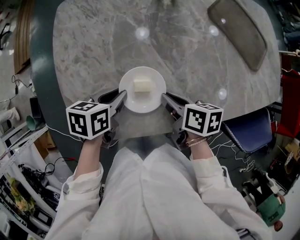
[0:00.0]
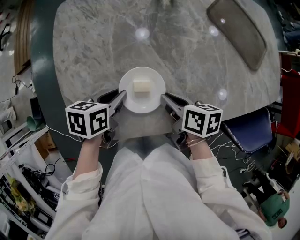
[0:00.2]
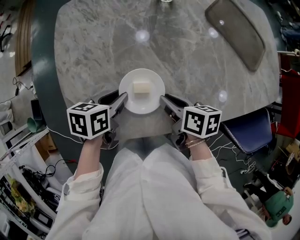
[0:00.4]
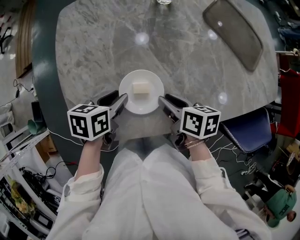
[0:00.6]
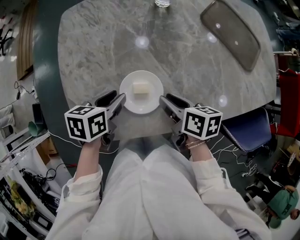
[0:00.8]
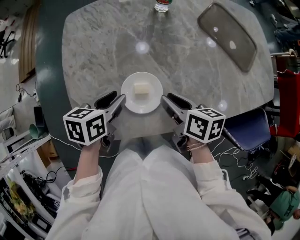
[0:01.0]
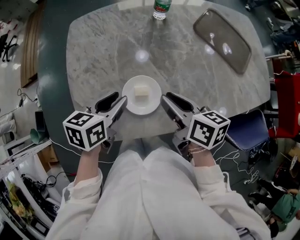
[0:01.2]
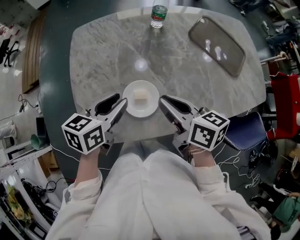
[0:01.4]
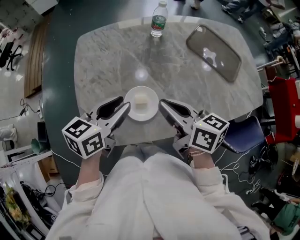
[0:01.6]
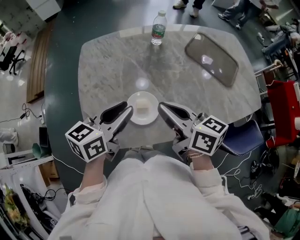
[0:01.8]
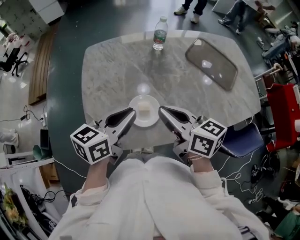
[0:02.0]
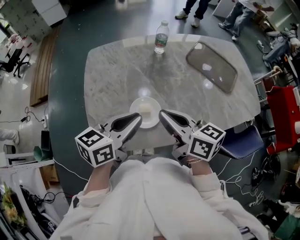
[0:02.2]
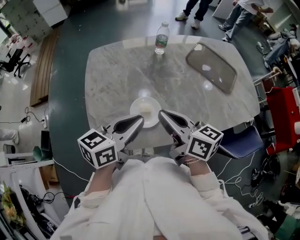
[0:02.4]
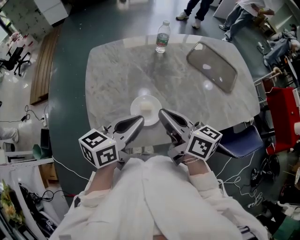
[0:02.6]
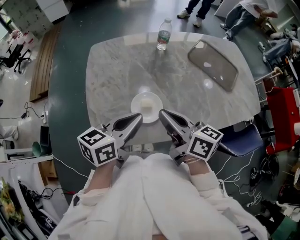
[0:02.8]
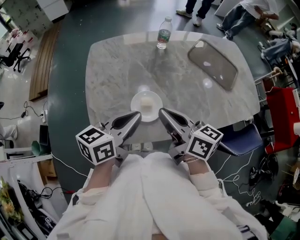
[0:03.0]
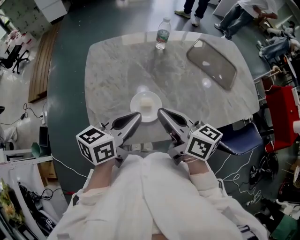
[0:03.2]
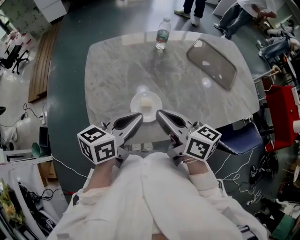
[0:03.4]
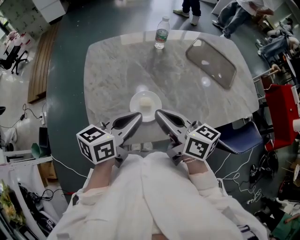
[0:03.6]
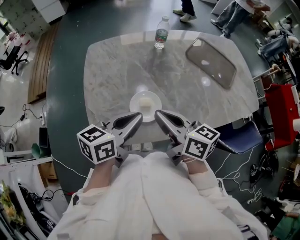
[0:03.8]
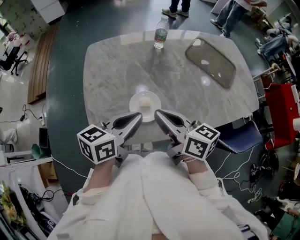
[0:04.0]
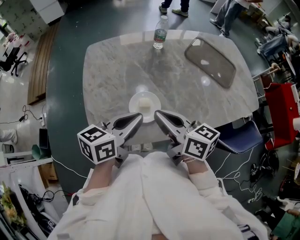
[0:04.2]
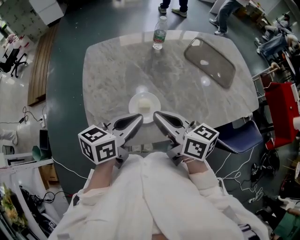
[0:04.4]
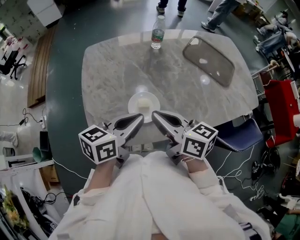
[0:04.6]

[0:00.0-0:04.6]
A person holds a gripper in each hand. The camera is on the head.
0:00.0 to 0:01.6: The grippers both shift upward by roughly 20 cm. The left gripper turns by approximately 30 degrees. Meanwhile the right gripper rotates roughly 30 degrees.
0:01.6 to 0:03.0: The left gripper shifts some 5 cm backward, and closes. Meanwhile the right gripper ends up some 5 cm from where it was.
0:03.0 to 0:04.6: The grippers make only small movements.

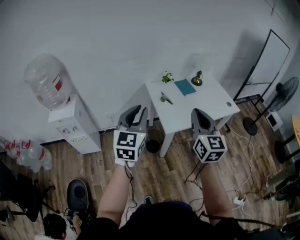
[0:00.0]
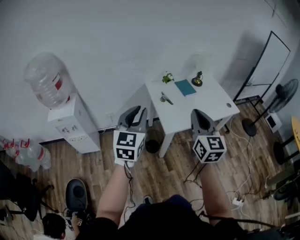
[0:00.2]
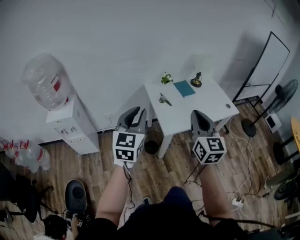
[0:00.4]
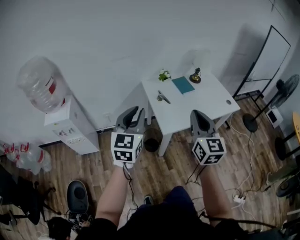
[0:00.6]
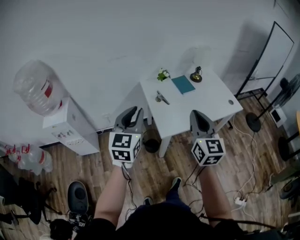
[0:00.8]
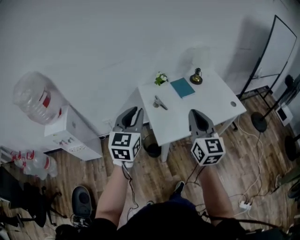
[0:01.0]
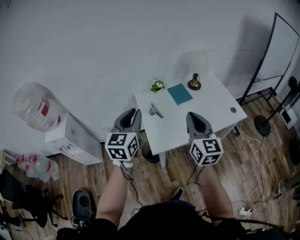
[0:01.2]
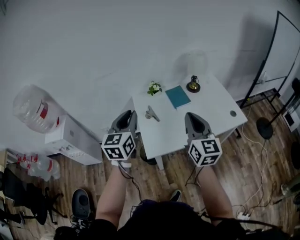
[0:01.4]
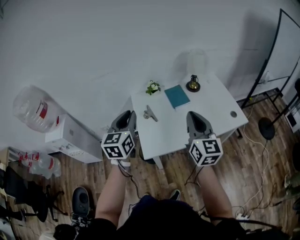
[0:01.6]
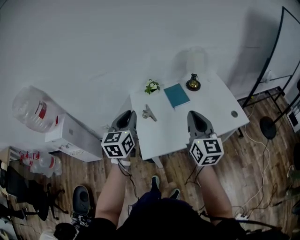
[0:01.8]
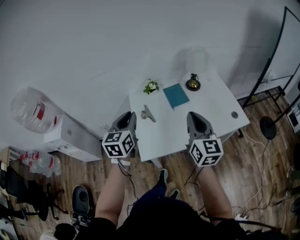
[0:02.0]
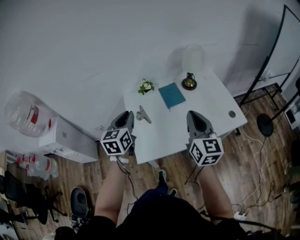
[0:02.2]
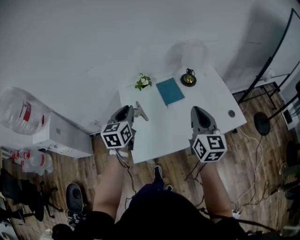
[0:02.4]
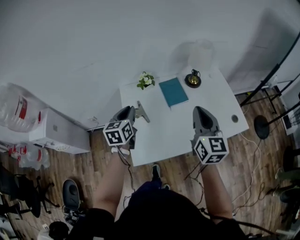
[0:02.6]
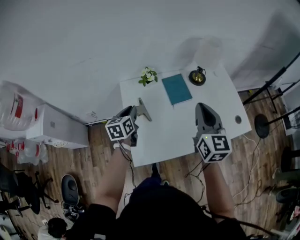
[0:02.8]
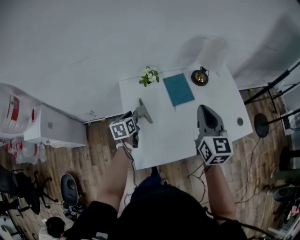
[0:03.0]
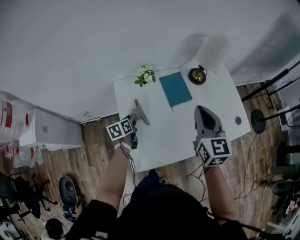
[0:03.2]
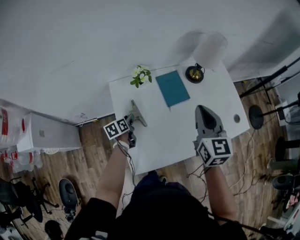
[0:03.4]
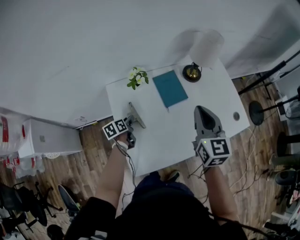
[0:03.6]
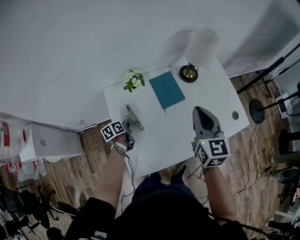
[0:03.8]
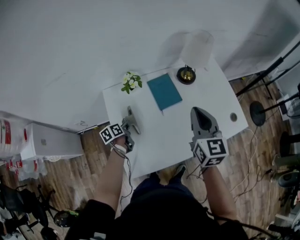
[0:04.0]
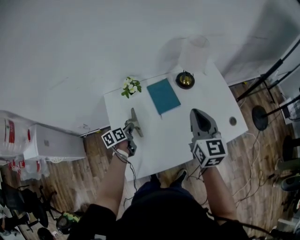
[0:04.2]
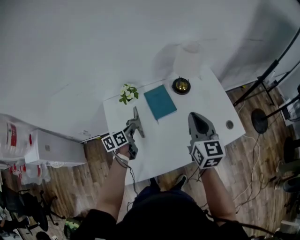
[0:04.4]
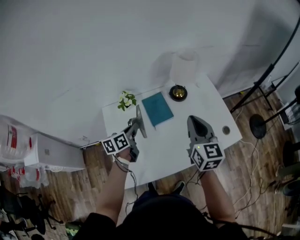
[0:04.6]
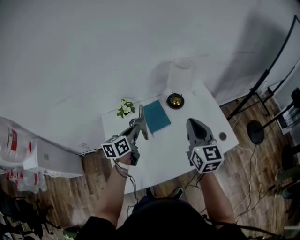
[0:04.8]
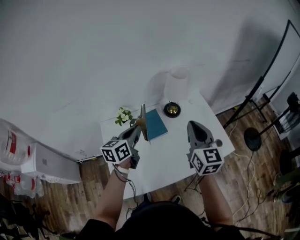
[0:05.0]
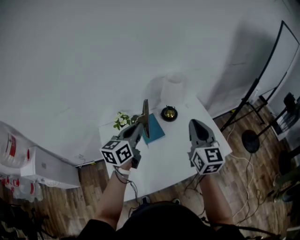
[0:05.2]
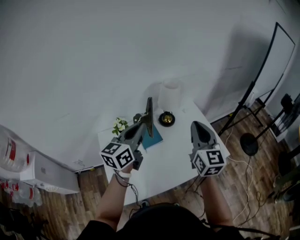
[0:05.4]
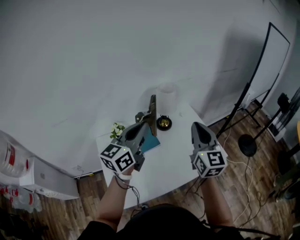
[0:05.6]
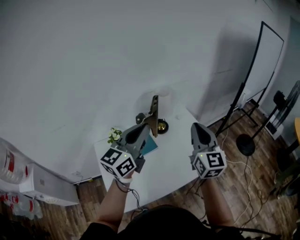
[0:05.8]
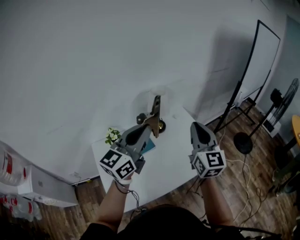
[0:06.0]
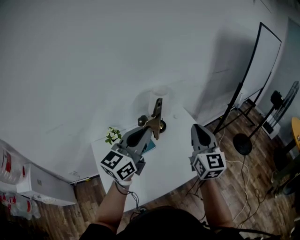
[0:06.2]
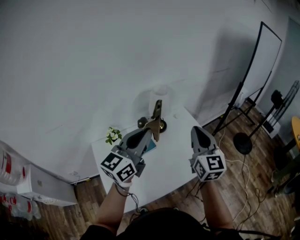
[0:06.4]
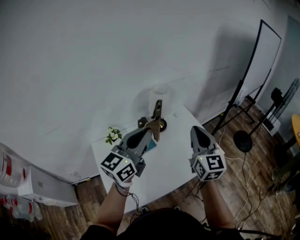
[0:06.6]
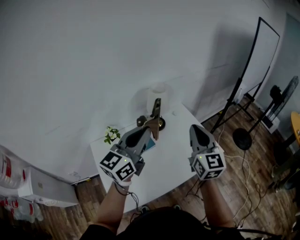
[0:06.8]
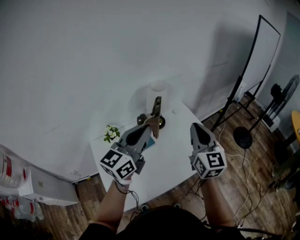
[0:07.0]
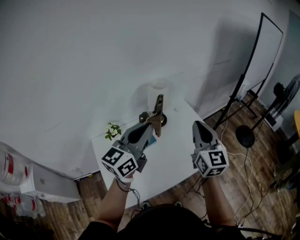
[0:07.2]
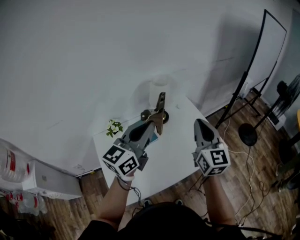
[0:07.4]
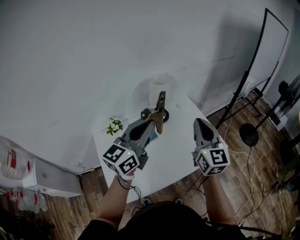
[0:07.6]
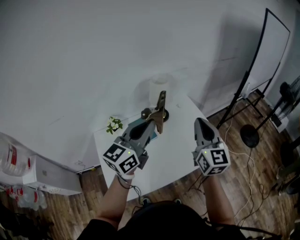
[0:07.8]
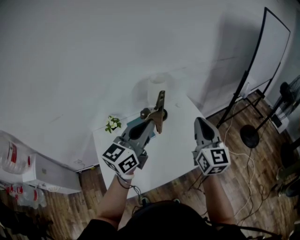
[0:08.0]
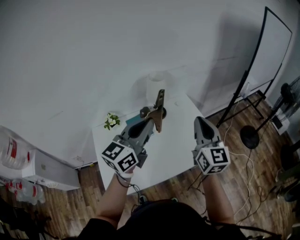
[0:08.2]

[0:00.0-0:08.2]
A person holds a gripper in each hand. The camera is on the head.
0:00.0 to 0:01.6: The grippers both shift forward and to the right by about 35 cm.
0:01.6 to 0:03.2: The left gripper moves downward and forward, about 50 cm, and angles its fingers downward, by about 30 degrees; the right gripper is displaced forward by approximately 25 cm.
0:03.2 to 0:05.0: The right gripper moves to the right and upward, approximately 15 cm. Meanwhile the left gripper travels upward and to the right by some 35 cm, turns by some 40 degrees, and closes up.
0:05.0 to 0:06.6: The right gripper shifts roughly 10 cm to the right and upward. The left gripper shifts about 20 cm upward and to the right, and changes its angle by approximately 30 degrees.
0:06.6 to 0:08.2: Both grippers travel together to the right, approximately 5 cm.

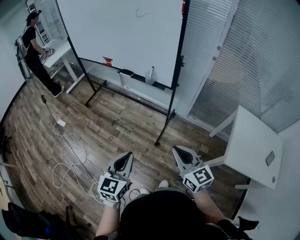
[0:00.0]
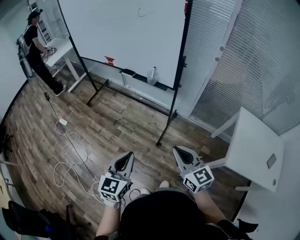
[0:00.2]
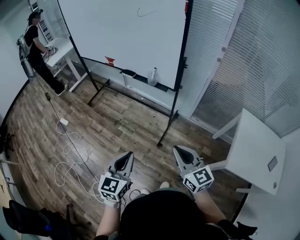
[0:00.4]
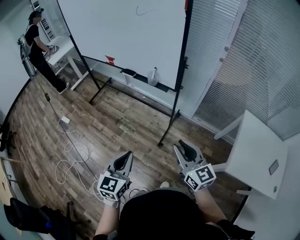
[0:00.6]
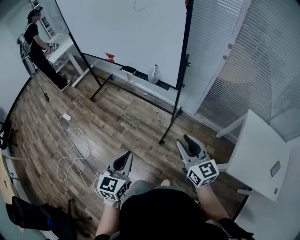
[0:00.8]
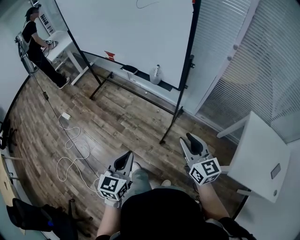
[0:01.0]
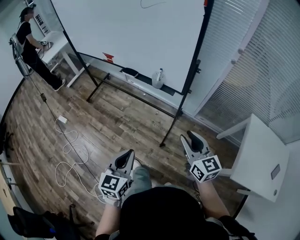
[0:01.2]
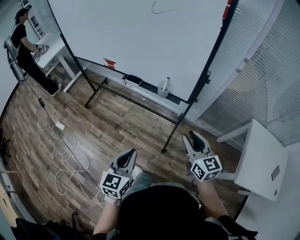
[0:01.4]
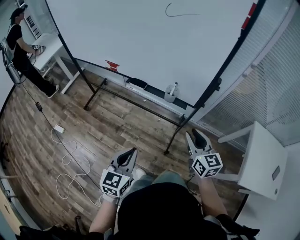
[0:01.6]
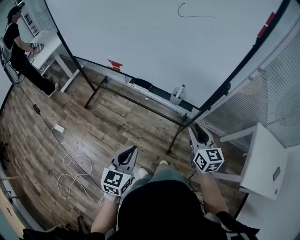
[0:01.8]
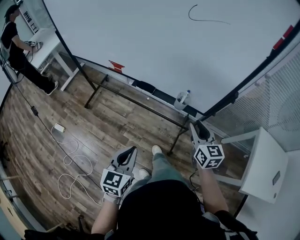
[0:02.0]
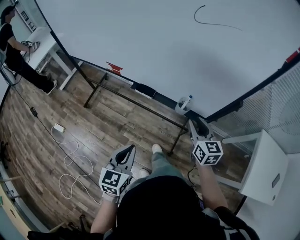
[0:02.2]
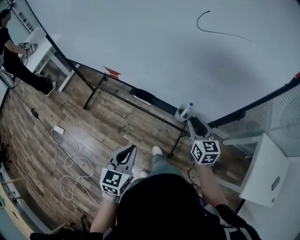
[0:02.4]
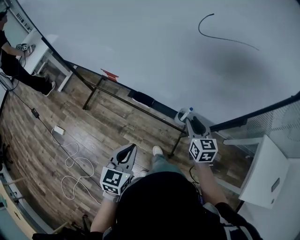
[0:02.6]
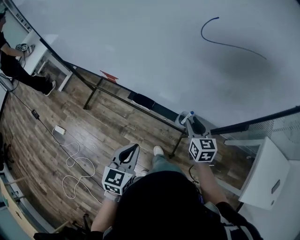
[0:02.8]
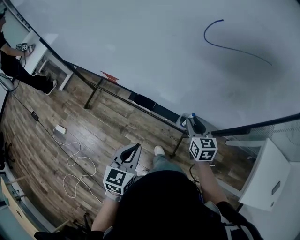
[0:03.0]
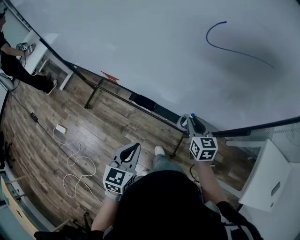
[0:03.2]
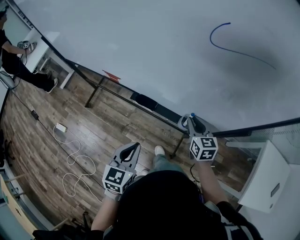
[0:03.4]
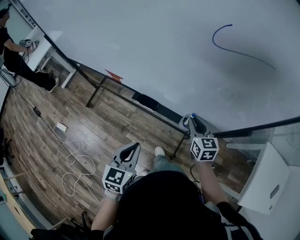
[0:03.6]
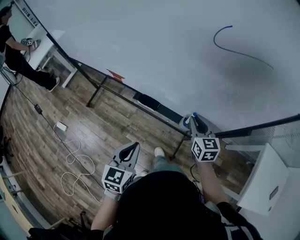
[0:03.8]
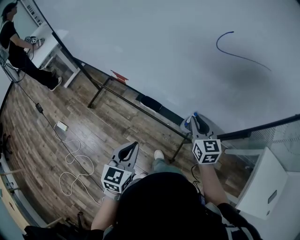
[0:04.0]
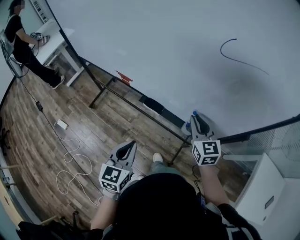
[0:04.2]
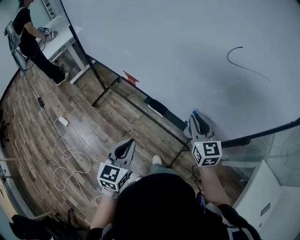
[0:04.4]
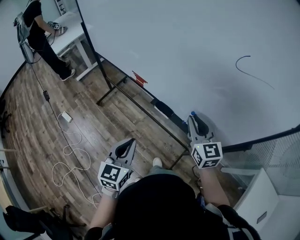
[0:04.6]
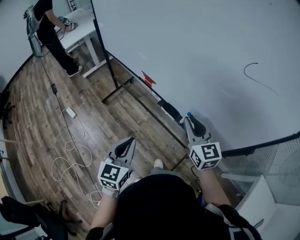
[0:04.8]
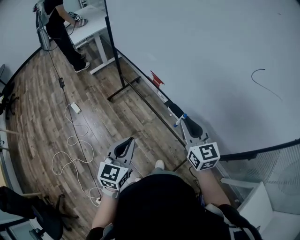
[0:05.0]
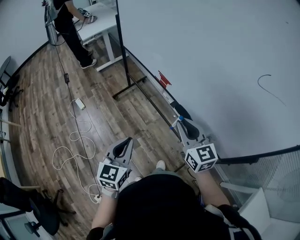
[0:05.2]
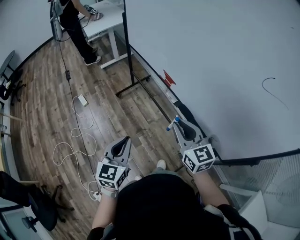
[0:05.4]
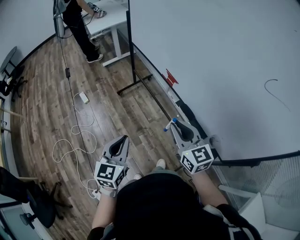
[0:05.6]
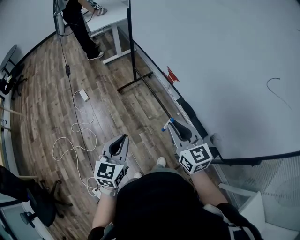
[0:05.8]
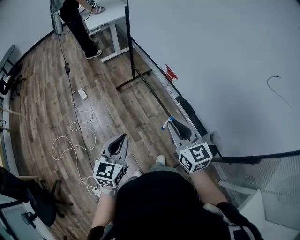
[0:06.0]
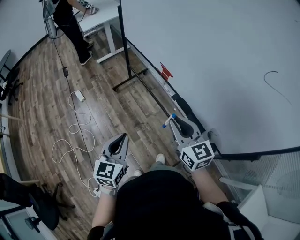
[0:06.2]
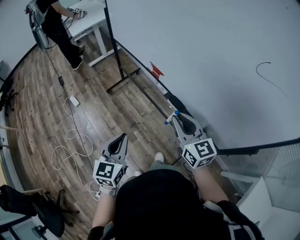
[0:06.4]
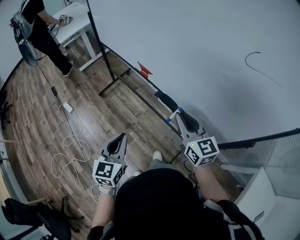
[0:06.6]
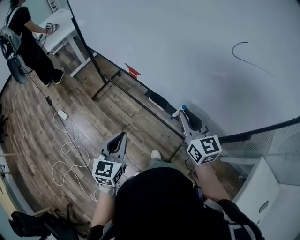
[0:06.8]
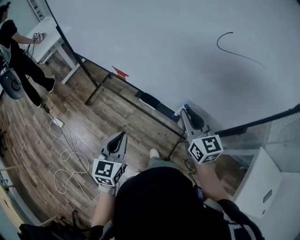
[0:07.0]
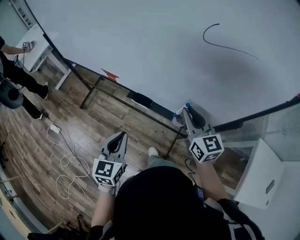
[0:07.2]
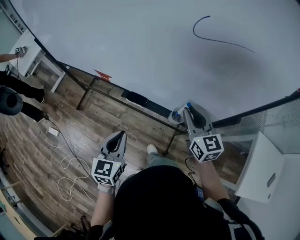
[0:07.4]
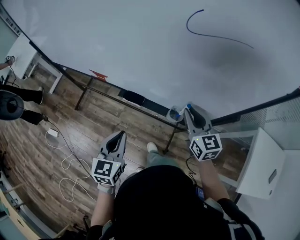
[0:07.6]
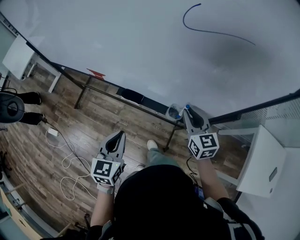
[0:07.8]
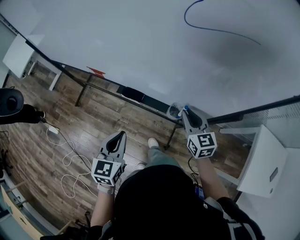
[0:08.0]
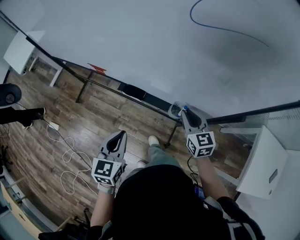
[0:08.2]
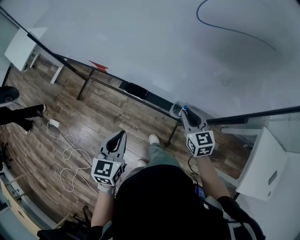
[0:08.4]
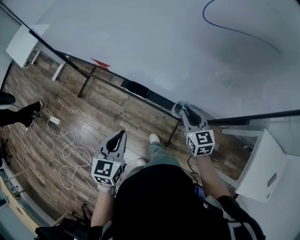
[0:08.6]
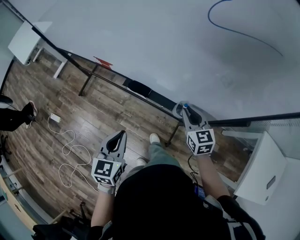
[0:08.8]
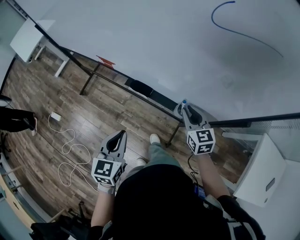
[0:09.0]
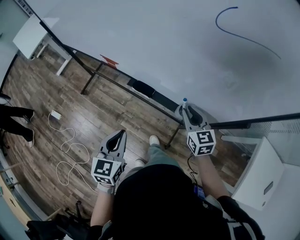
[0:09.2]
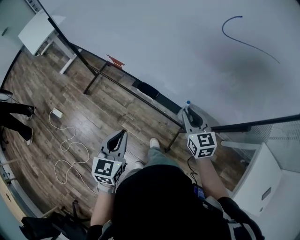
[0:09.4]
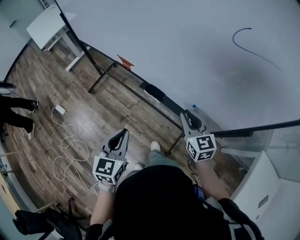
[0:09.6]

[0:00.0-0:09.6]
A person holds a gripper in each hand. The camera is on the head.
0:00.0 to 0:01.6: Both grippers travel together forward, about 30 cm. The right gripper opens up.
0:01.6 to 0:03.2: The grippers both shift forward by approximately 30 cm.
0:03.2 to 0:04.8: The left gripper moves to the left, upward and backward, approximately 15 cm, and swivels approximately 20 degrees. Meanwhile the right gripper shifts about 25 cm to the left and upward, and swivels about 30 degrees.
0:04.8 to 0:06.4: Both grippers move to the left, roughly 5 cm.
0:06.4 to 0:08.0: The right gripper ends up approximately 30 cm from where it was, and rotates approximately 40 degrees; the left gripper changes place by about 20 cm, and turns by some 30 degrees.
0:08.0 to 0:09.6: The left gripper shifts about 5 cm to the left, while the right gripper is displaced to the left by about 10 cm.

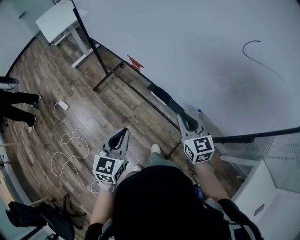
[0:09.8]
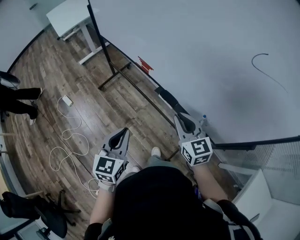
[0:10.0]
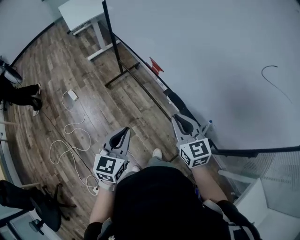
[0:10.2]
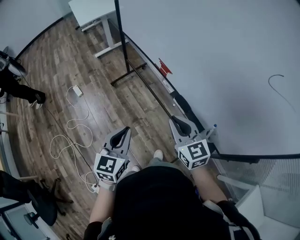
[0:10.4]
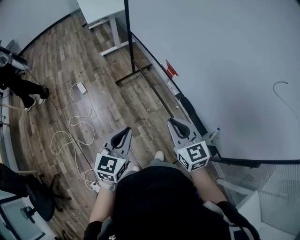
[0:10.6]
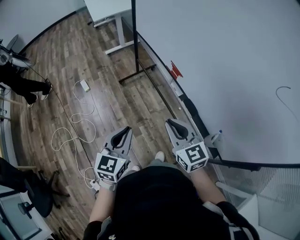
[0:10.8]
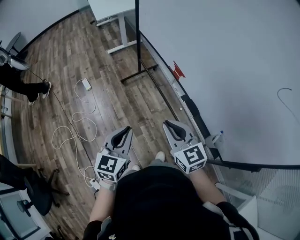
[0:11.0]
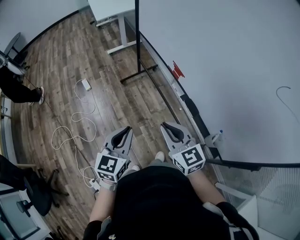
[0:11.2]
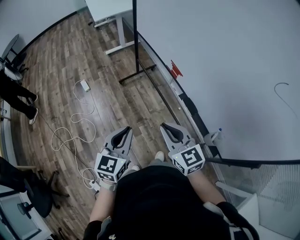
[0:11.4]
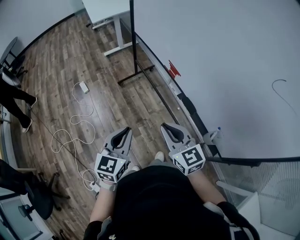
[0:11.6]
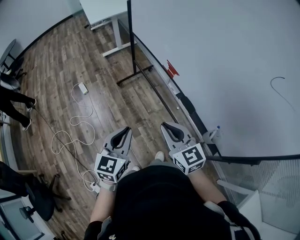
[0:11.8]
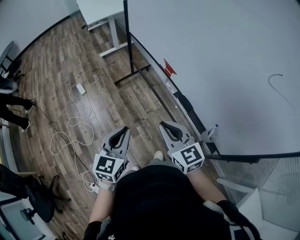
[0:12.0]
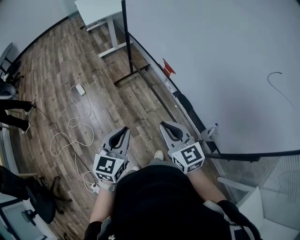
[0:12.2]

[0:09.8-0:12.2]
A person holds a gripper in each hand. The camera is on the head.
0:09.8 to 0:11.0: The right gripper travels to the left by approximately 20 cm, and changes its angle by some 30 degrees, while the left gripper goes approximately 10 cm to the left.
0:11.0 to 0:12.2: The grippers make only small movements.
